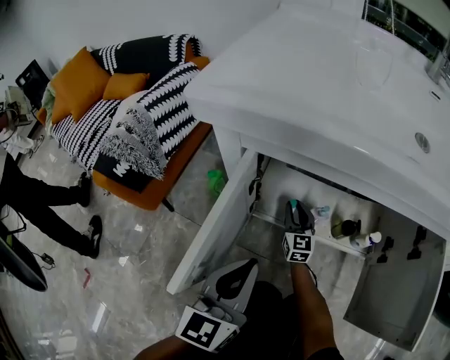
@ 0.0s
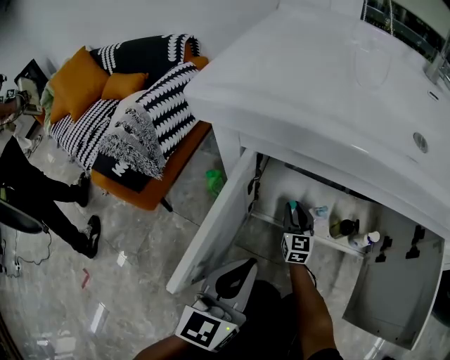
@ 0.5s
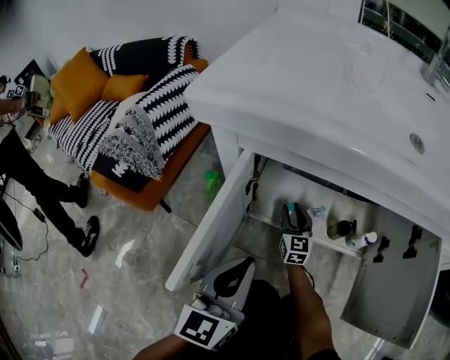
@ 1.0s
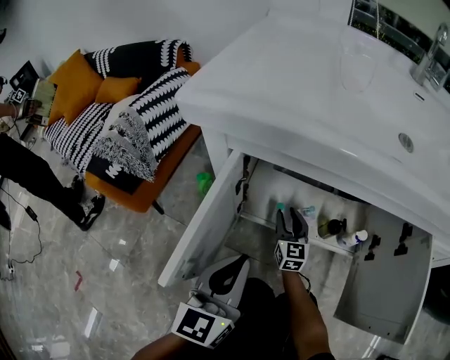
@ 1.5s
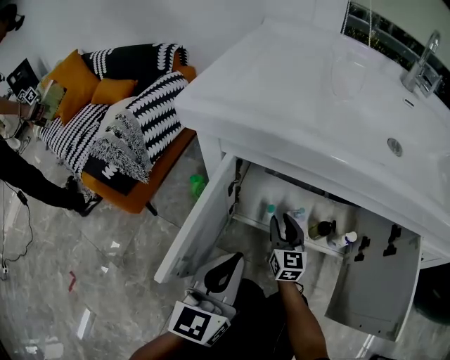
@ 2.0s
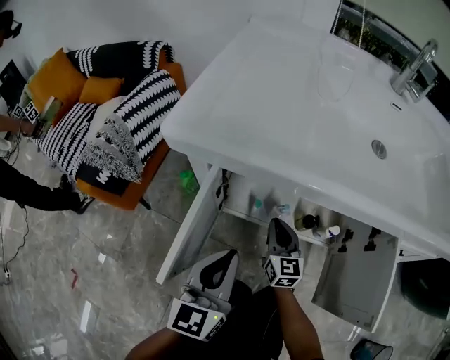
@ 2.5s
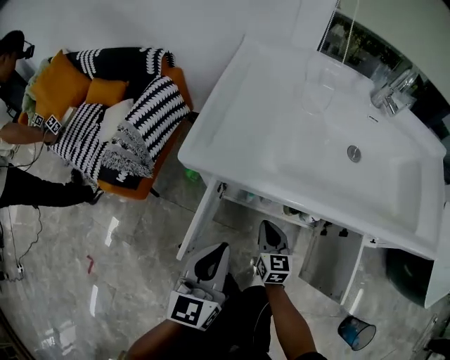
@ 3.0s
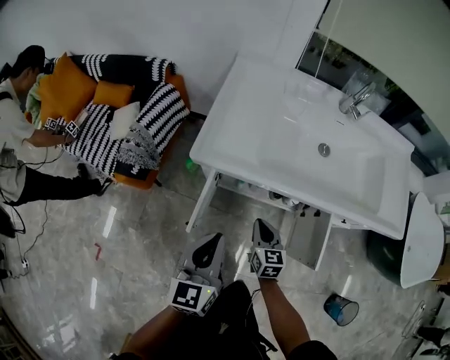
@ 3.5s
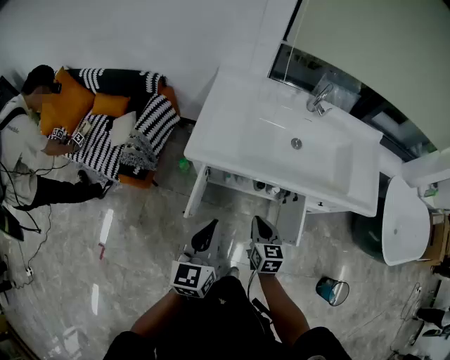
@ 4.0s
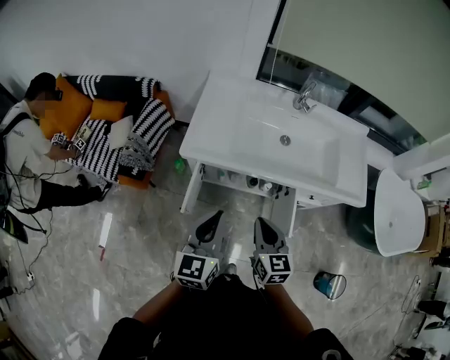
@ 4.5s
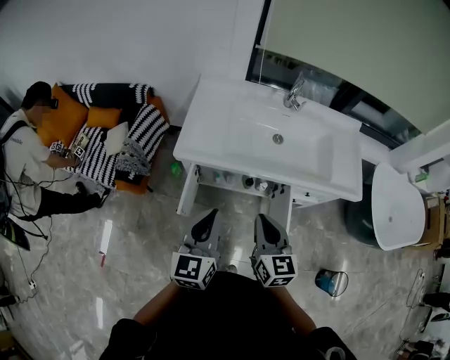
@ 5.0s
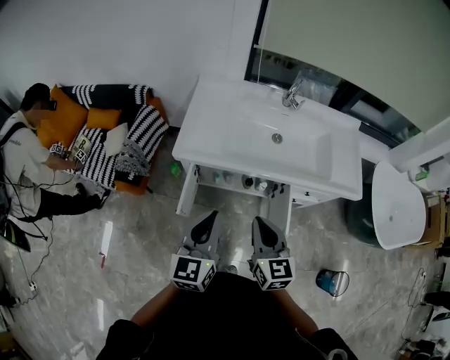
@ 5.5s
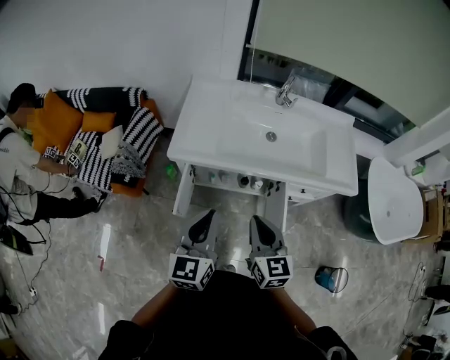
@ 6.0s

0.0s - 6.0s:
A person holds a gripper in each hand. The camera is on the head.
0.0s - 2.0s: The right gripper shifts approximately 10 cm upward and backward.
2.0s - 4.0s: The right gripper heads upward and backward, covering roughly 50 cm, rotates approximately 20 degrees, and closes. Meanwhile the left gripper moves upward, some 40 cm.
4.0s - 6.0s: The left gripper shifts approximately 10 cm upward and to the right. The right gripper travels upward by about 20 cm.

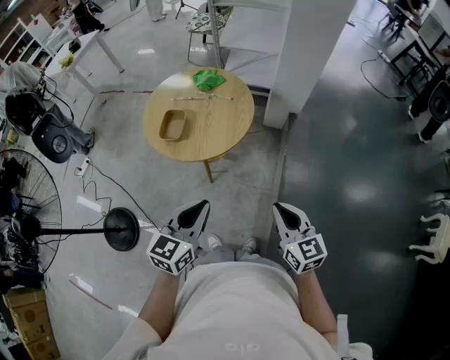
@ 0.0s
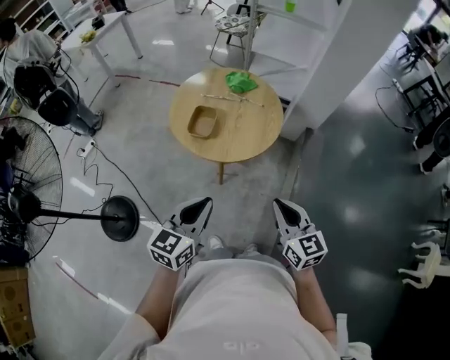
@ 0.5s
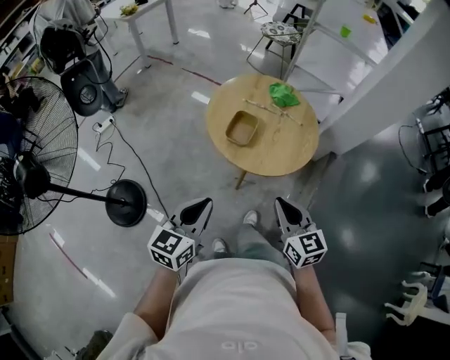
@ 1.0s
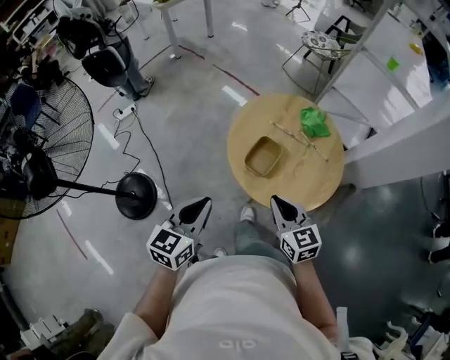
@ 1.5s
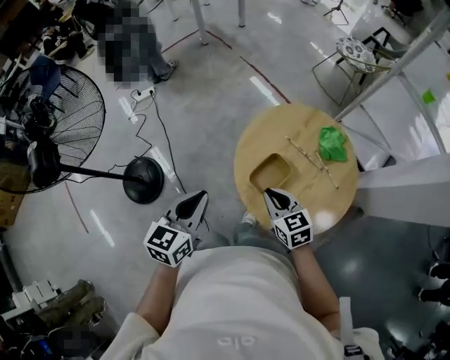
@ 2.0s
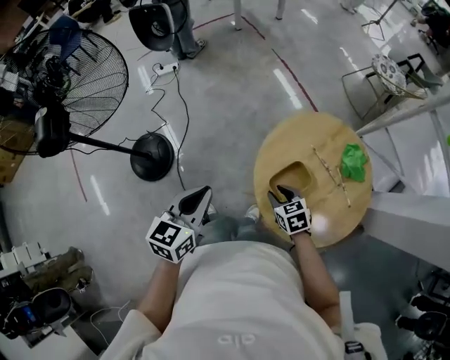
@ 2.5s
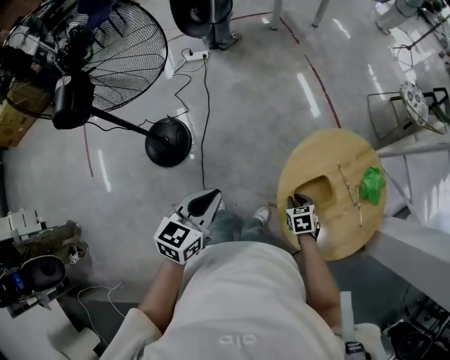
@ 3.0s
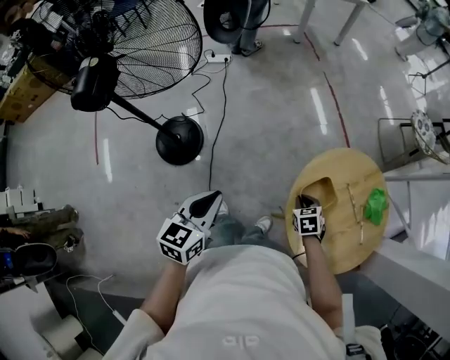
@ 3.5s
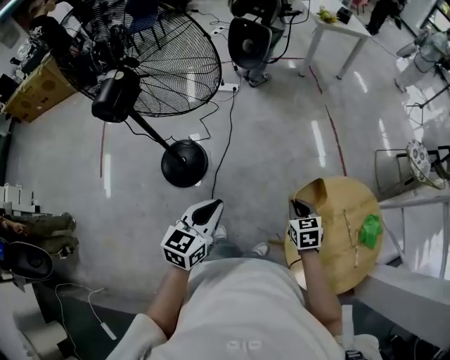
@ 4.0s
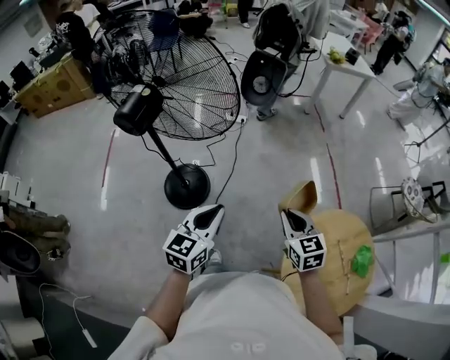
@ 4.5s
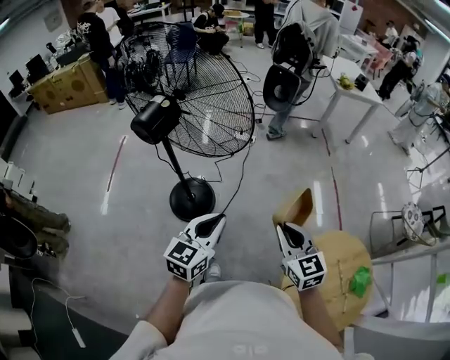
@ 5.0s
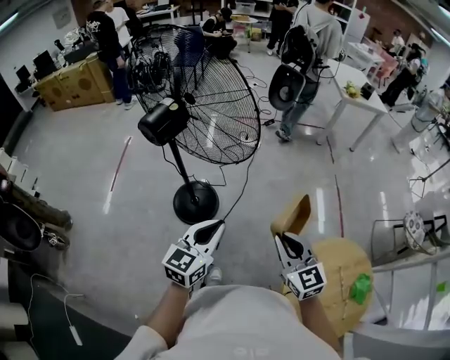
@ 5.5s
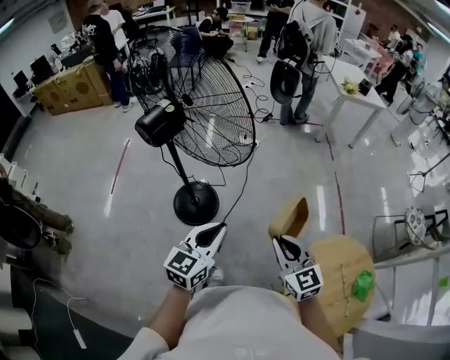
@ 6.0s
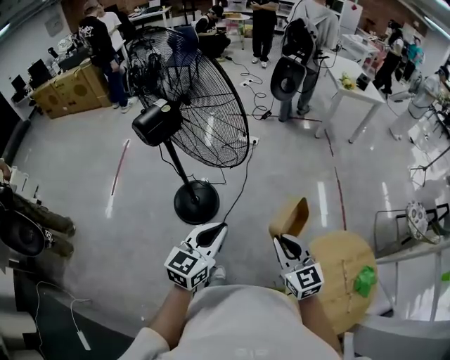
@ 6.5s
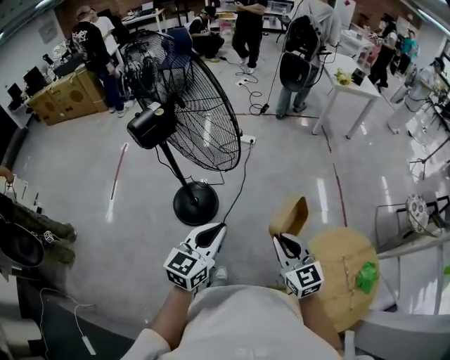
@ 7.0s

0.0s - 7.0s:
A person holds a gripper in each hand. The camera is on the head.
0.0s - 2.0s: The pair of grippers is taken approximately 50 cm. The right gripper rotates roughly 50 degrees; the left gripper changes its angle by about 40 degrees.
2.0s - 3.5s: The right gripper moves downward, to the left and forward, some 20 cm, changes its angle by roughly 30 degrees, and opens and closes again. The left gripper is displaced to the left by about 20 cm, and rotates approximately 20 degrees.
3.5s - 5.0s: The right gripper shifts approximately 40 cm upward and to the left, and tilts its fingers some 40 degrees upward. Meanwhile the left gripper heads upward and to the left, covering roughly 15 cm, and changes its angle by some 20 degrees.
5.0s - 7.0s: The grippers make only small movements.

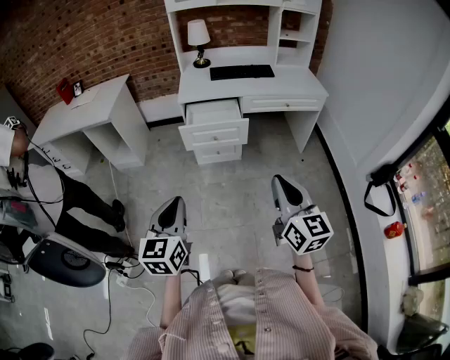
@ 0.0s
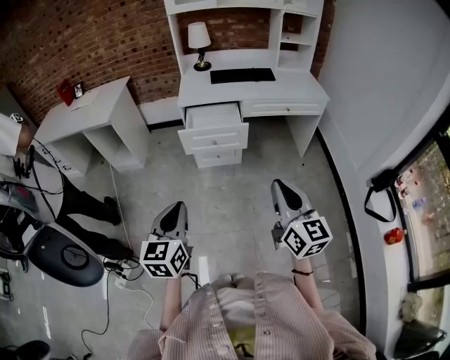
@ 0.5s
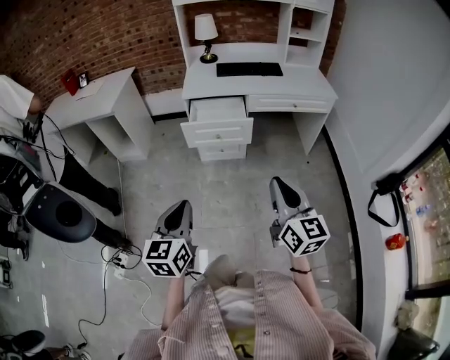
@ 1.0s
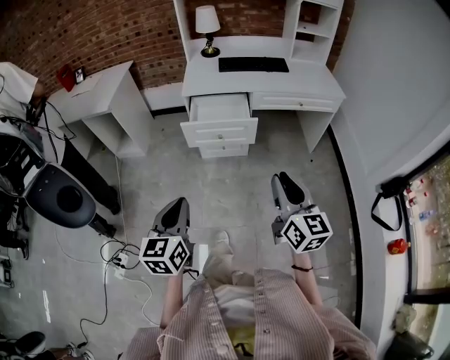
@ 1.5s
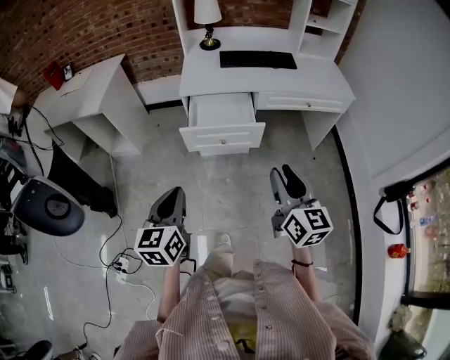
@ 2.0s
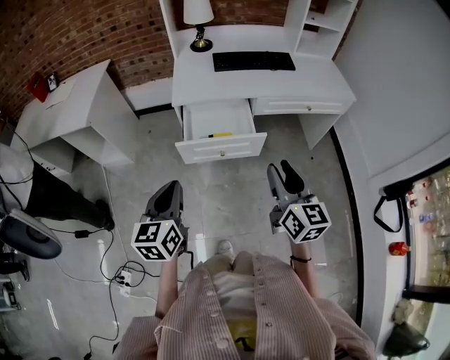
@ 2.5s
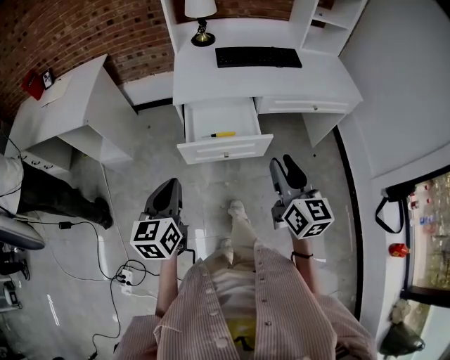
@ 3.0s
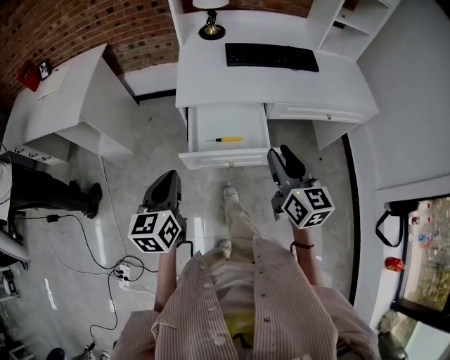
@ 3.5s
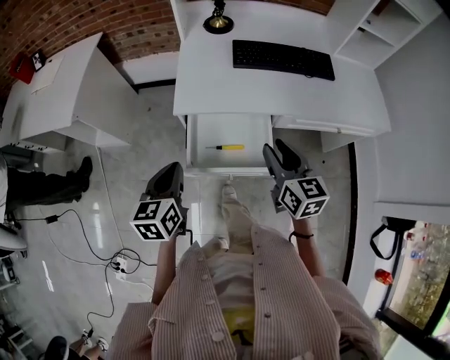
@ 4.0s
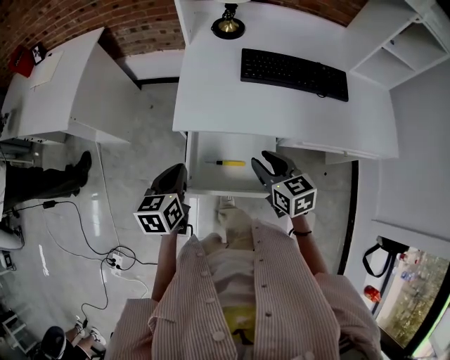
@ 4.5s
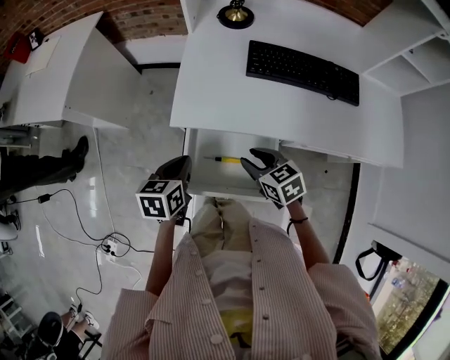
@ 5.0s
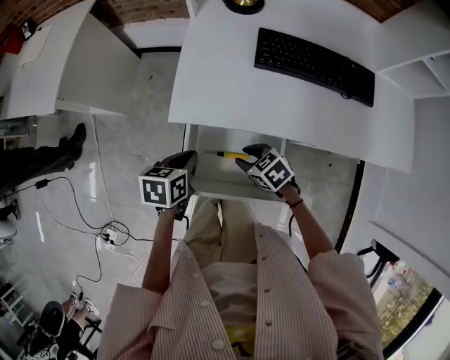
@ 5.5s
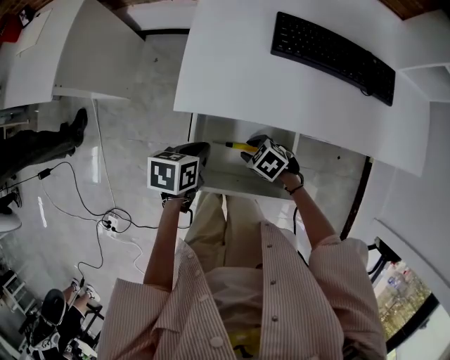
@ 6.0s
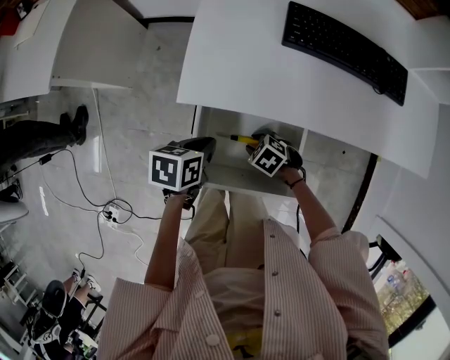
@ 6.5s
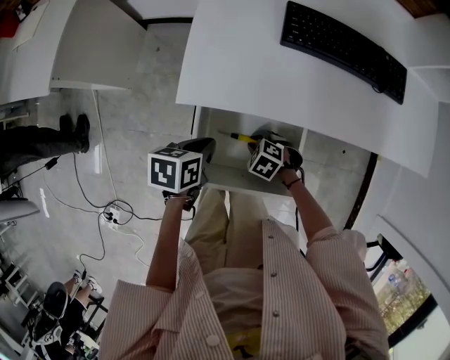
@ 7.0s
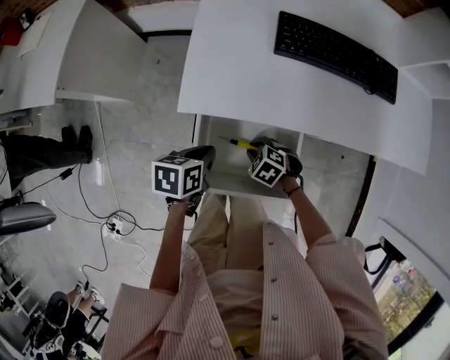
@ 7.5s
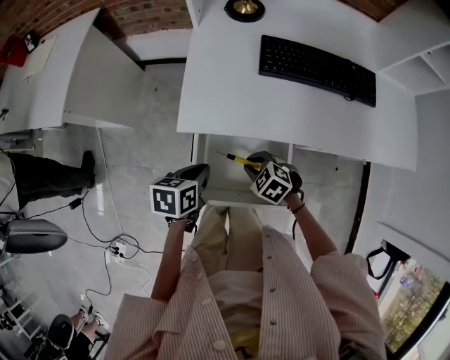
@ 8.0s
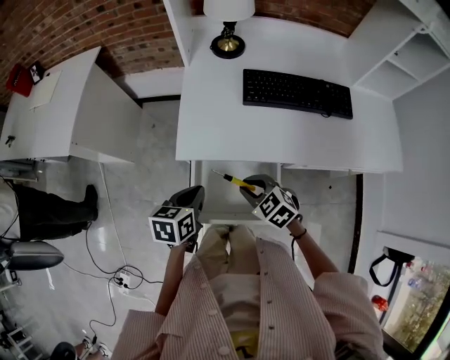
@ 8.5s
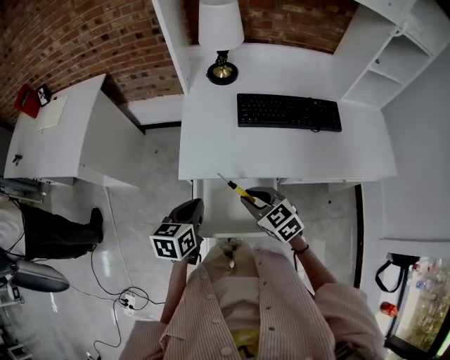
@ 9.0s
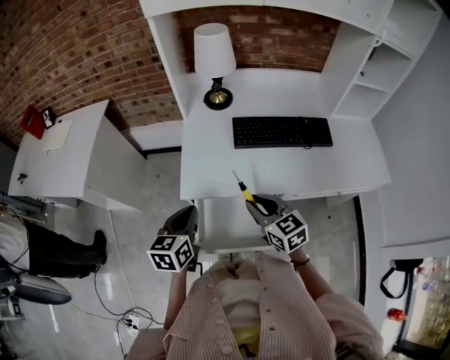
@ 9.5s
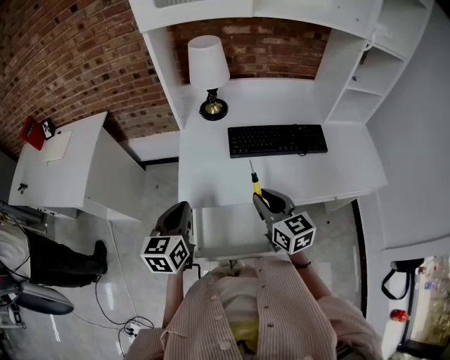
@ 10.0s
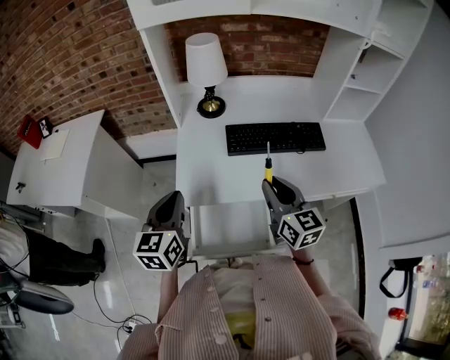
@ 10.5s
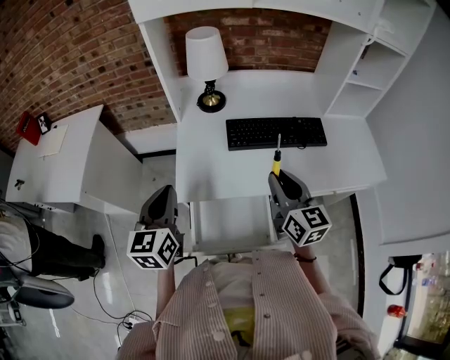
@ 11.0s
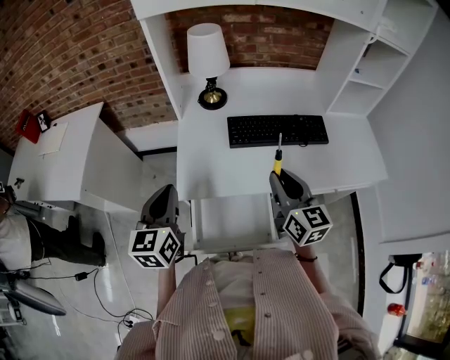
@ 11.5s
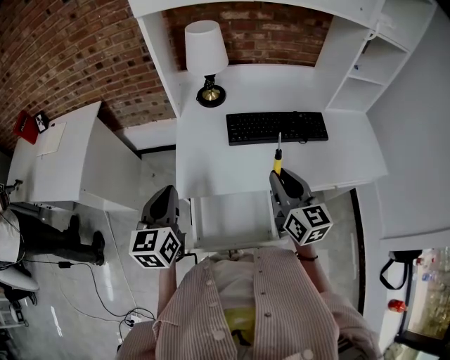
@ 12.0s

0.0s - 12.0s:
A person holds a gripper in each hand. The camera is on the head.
0.0s - 2.0s: The two grippers go roughly 20 cm forward. The right gripper opens.
2.0s - 4.0s: The two grippers go approximately 35 cm forward.
4.0s - 6.0s: The left gripper heads downward, covering roughly 20 cm, and swivels some 40 degrees. The right gripper moves downward, about 30 cm, and tips its fingers downward by some 40 degrees.
6.0s - 8.0s: The right gripper heads upward, covering approximately 5 cm.
8.0s - 10.0s: Both grippers move upward, roughly 25 cm. The left gripper rotates approximately 40 degrees, while the right gripper angles its fingers upward, by roughly 40 degrees.
10.0s - 12.0s: The right gripper ends up roughly 5 cm from where it was; the left gripper shifts by about 5 cm.

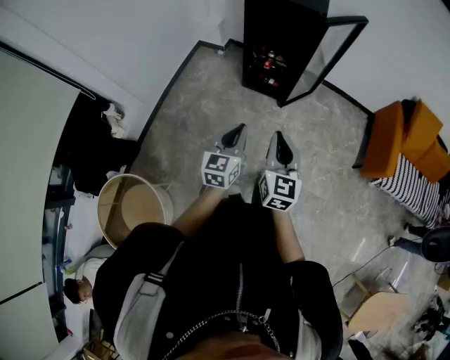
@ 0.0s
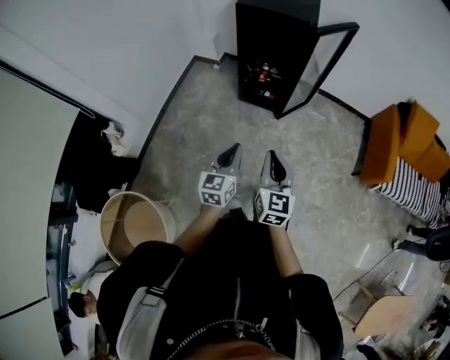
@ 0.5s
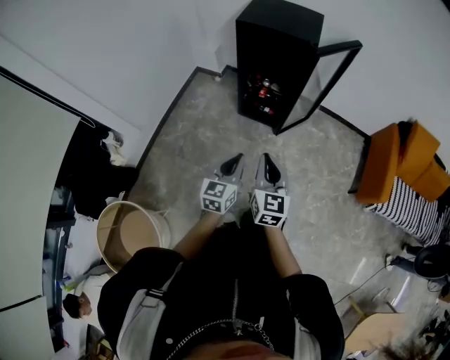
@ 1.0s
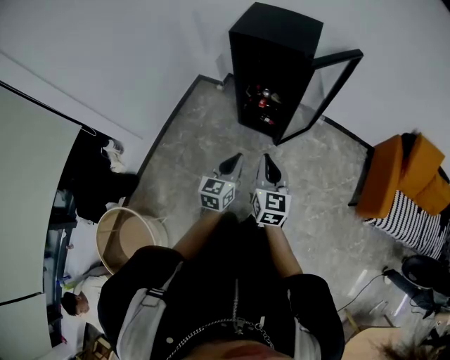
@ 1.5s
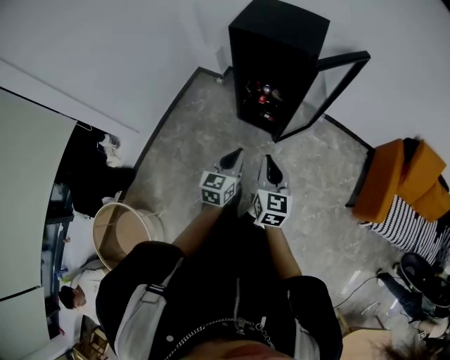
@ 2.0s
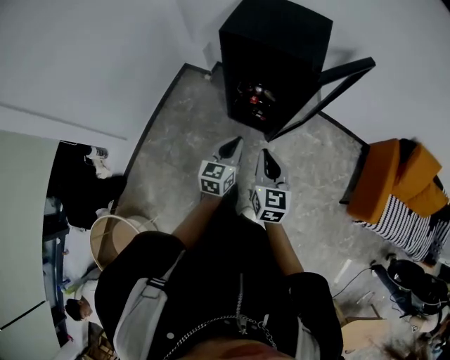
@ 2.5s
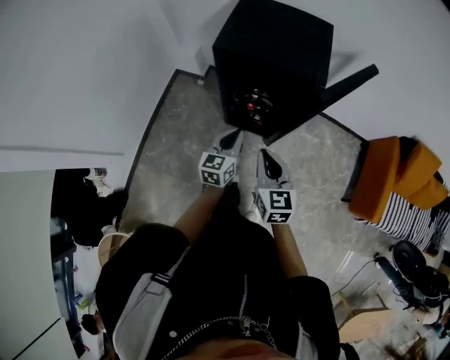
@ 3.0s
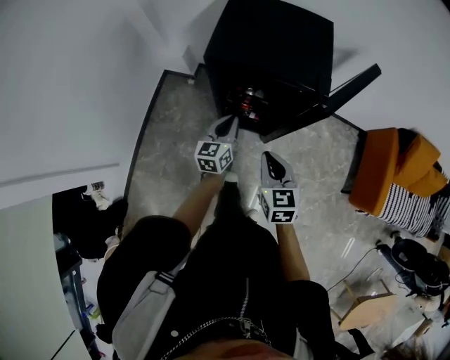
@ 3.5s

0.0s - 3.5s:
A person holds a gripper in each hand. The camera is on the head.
0.0s - 2.0s: The grippers both shift forward by about 20 cm.
2.0s - 3.5s: The two grippers go about 30 cm forward.
